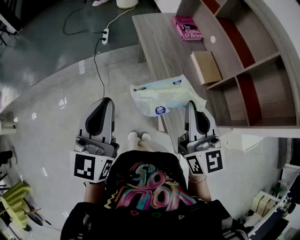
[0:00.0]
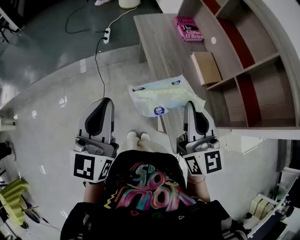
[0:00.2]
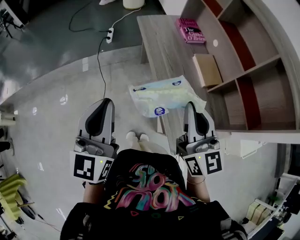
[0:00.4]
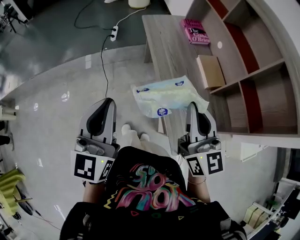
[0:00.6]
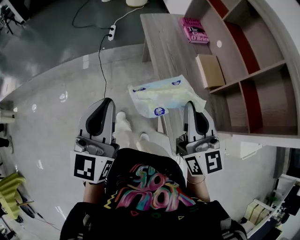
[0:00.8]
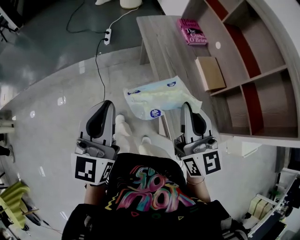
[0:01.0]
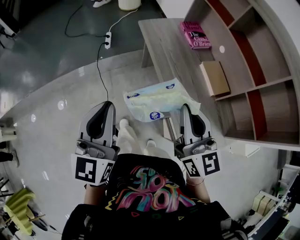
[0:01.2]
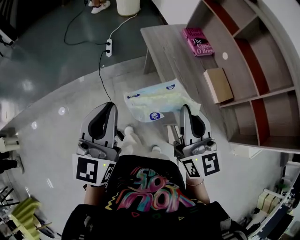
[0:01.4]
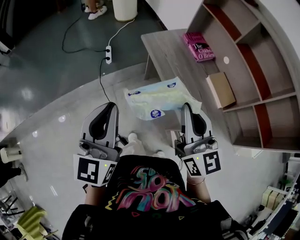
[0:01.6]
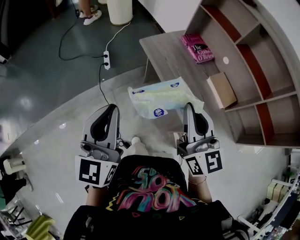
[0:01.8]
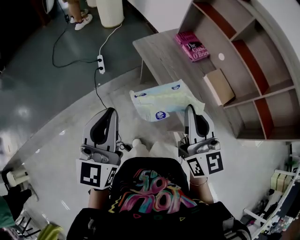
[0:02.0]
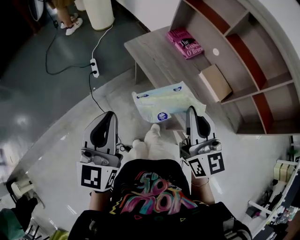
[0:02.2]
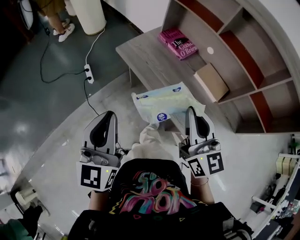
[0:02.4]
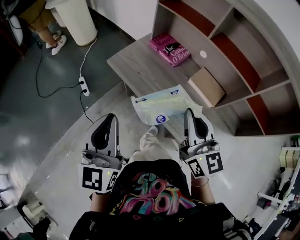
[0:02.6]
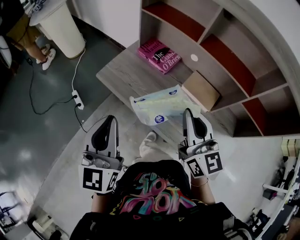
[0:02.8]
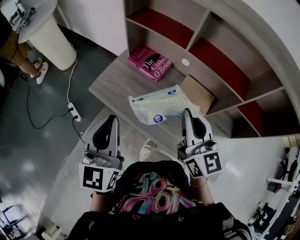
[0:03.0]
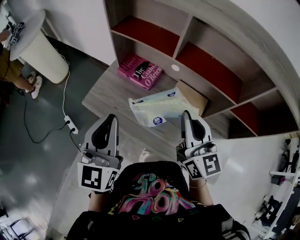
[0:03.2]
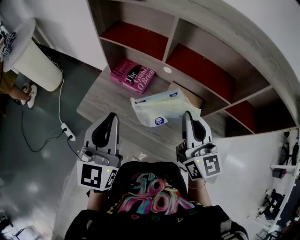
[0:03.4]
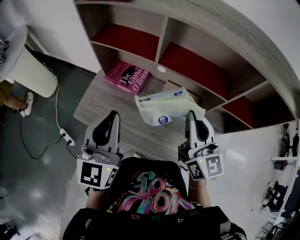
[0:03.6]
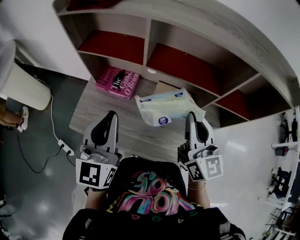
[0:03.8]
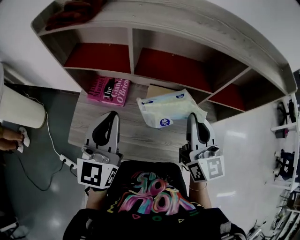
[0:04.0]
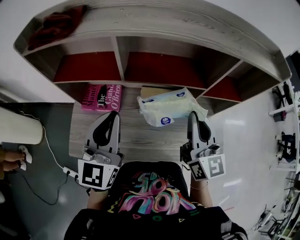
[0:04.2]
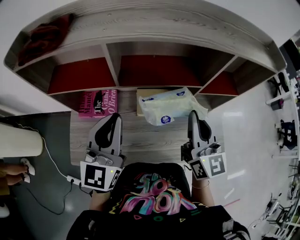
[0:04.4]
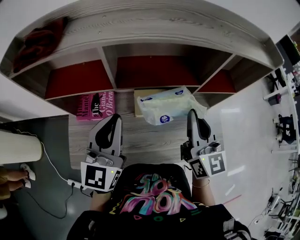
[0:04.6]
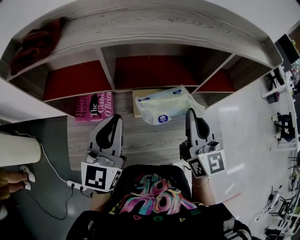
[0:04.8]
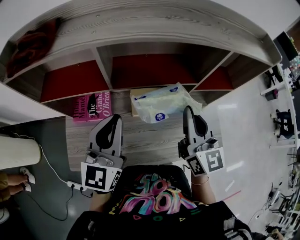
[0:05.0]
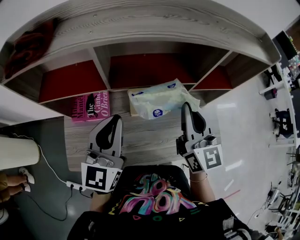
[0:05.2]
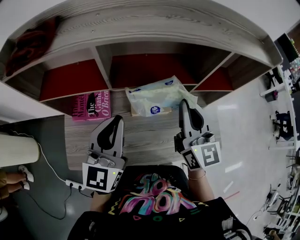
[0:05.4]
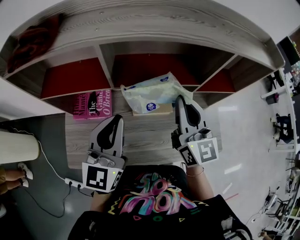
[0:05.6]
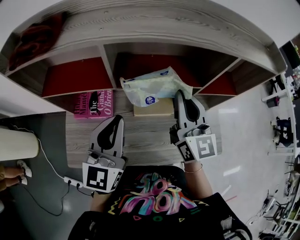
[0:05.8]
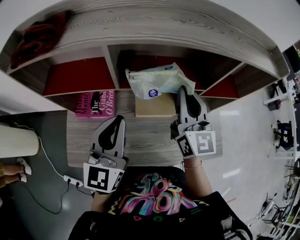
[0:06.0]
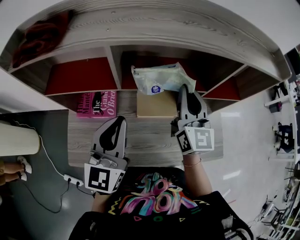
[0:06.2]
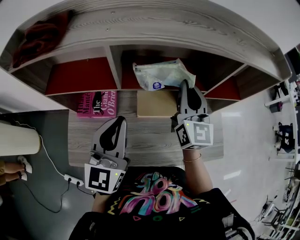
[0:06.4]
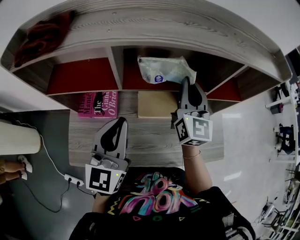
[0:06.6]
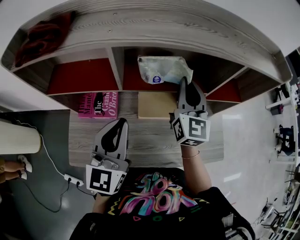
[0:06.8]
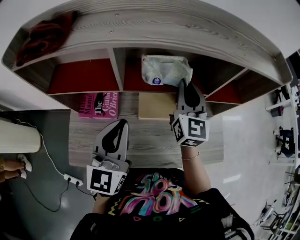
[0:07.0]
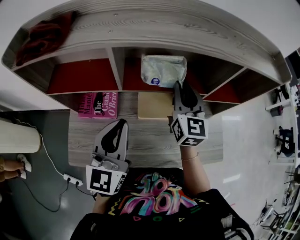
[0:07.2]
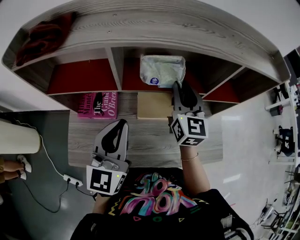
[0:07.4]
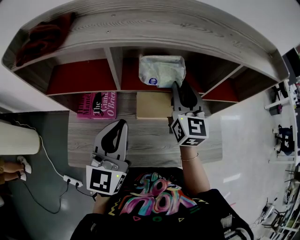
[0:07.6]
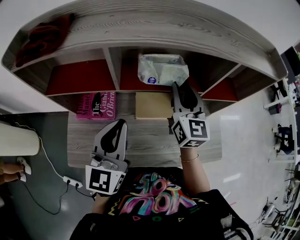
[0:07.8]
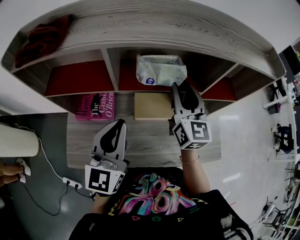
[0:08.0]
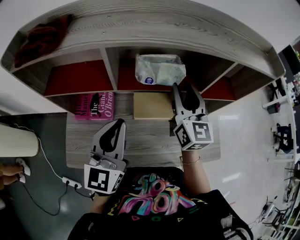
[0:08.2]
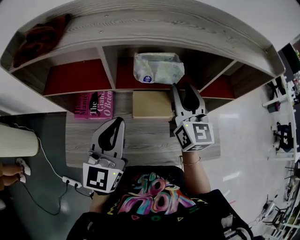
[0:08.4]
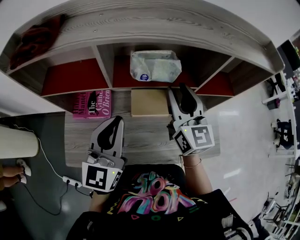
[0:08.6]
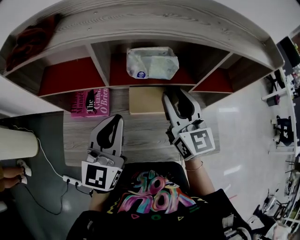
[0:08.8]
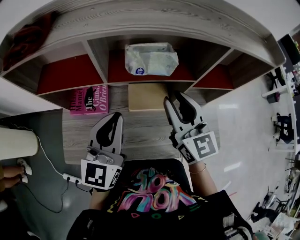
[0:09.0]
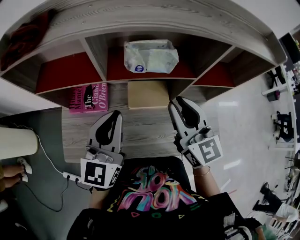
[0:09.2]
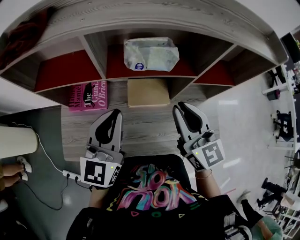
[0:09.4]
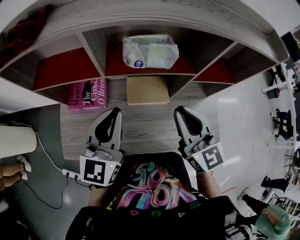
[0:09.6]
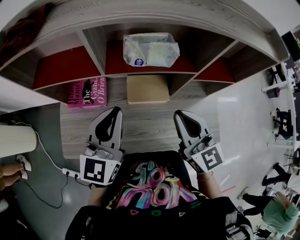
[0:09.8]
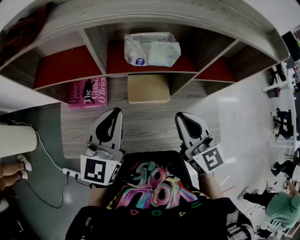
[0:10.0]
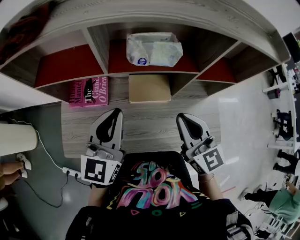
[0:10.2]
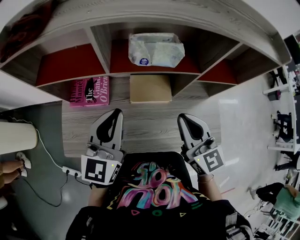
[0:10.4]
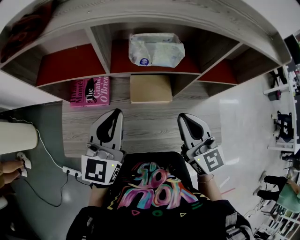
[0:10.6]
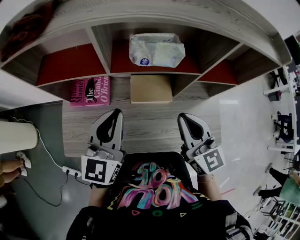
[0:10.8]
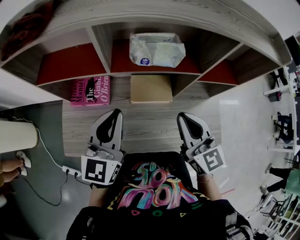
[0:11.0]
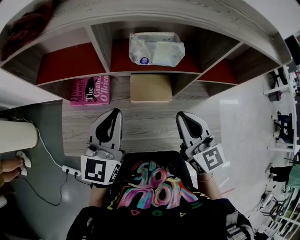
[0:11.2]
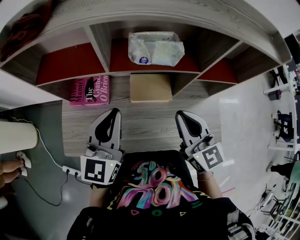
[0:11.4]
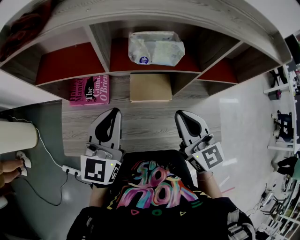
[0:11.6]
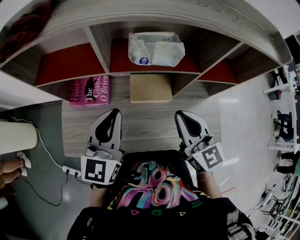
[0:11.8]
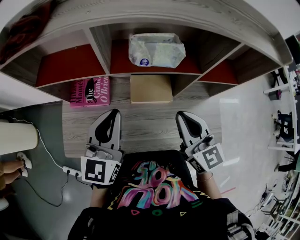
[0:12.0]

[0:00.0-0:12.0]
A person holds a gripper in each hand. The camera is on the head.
0:00.0 to 0:01.6: Both grippers move forward and to the left, approximately 20 cm.
0:01.6 to 0:03.0: The left gripper moves approximately 30 cm, and rotates approximately 30 degrees, while the right gripper moves approximately 20 cm, and swivels roughly 30 degrees.
0:03.0 to 0:04.4: The right gripper changes place by some 15 cm, and rotates roughly 40 degrees; the left gripper changes place by roughly 25 cm, and changes its angle by about 40 degrees.
0:04.4 to 0:06.0: The right gripper moves forward, about 10 cm.
0:06.0 to 0:07.6: The right gripper ends up approximately 5 cm from where it was, and opens.
0:07.6 to 0:09.0: The right gripper goes roughly 10 cm backward.
0:09.0 to 0:10.4: The right gripper heads backward, covering some 5 cm, and closes.
0:10.4 to 0:12.0: Both grippers stay put.

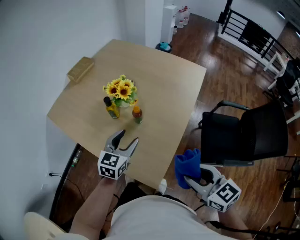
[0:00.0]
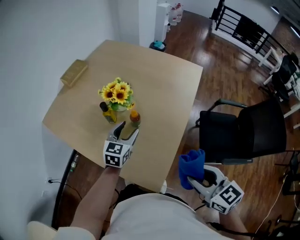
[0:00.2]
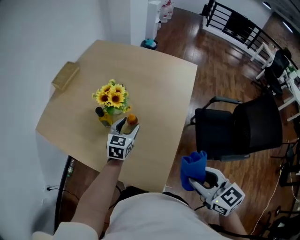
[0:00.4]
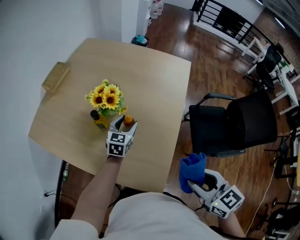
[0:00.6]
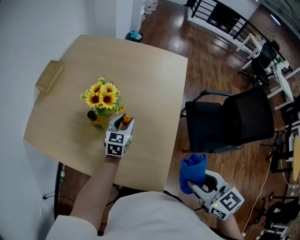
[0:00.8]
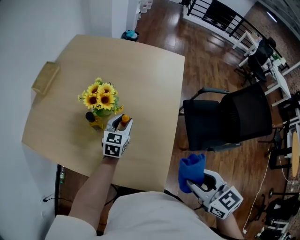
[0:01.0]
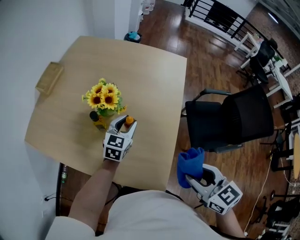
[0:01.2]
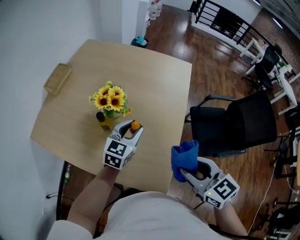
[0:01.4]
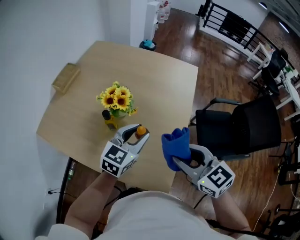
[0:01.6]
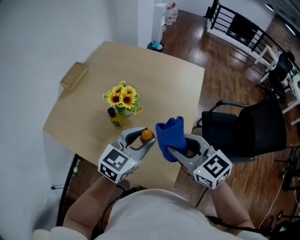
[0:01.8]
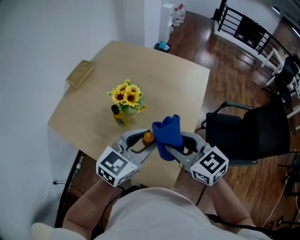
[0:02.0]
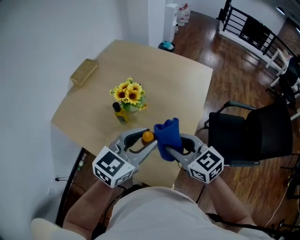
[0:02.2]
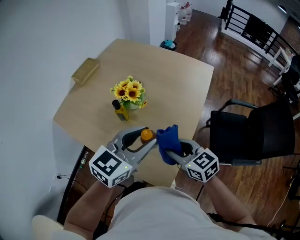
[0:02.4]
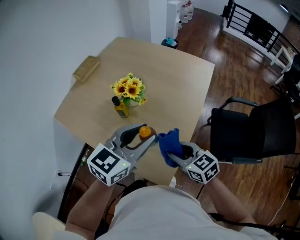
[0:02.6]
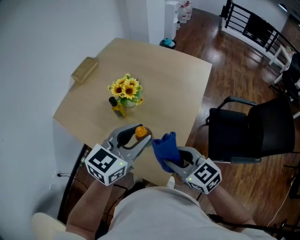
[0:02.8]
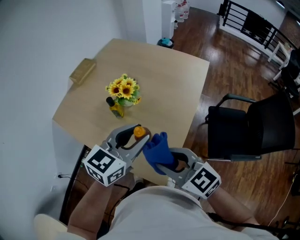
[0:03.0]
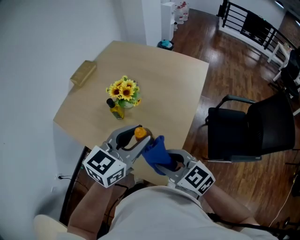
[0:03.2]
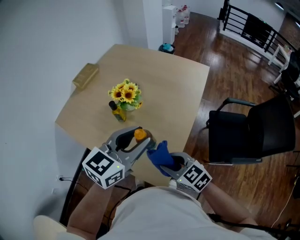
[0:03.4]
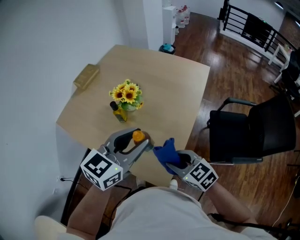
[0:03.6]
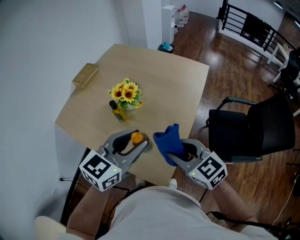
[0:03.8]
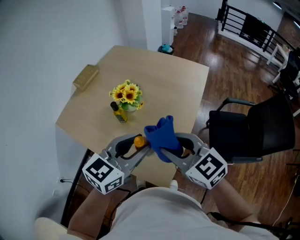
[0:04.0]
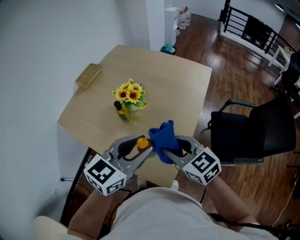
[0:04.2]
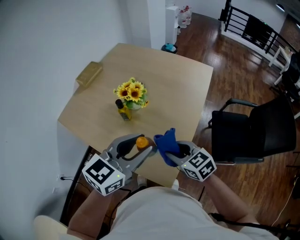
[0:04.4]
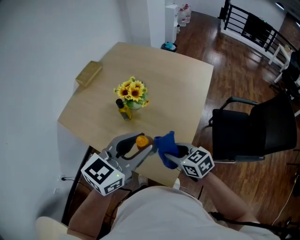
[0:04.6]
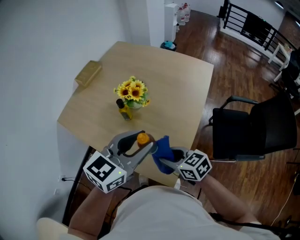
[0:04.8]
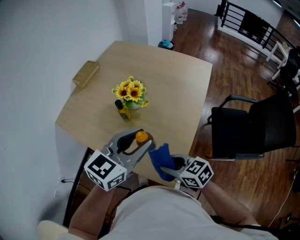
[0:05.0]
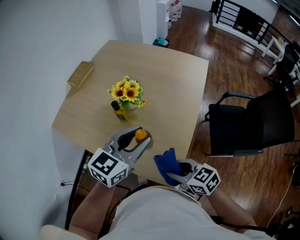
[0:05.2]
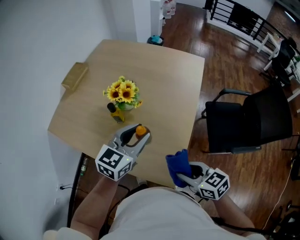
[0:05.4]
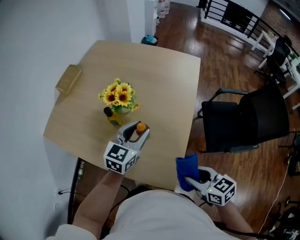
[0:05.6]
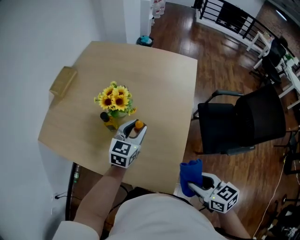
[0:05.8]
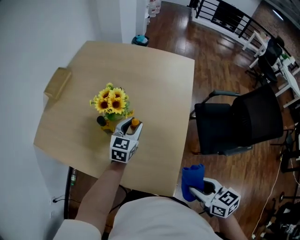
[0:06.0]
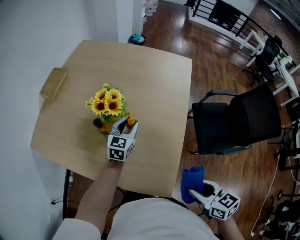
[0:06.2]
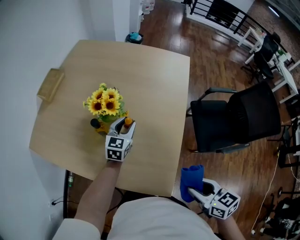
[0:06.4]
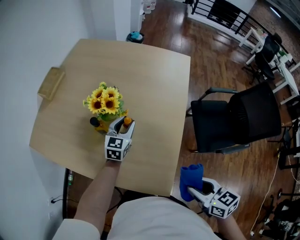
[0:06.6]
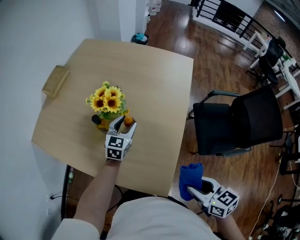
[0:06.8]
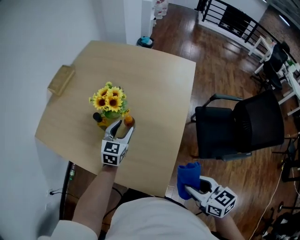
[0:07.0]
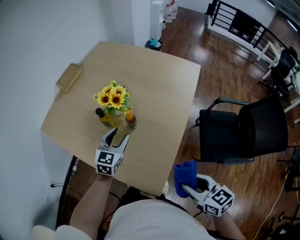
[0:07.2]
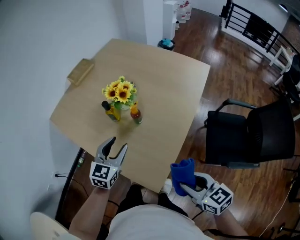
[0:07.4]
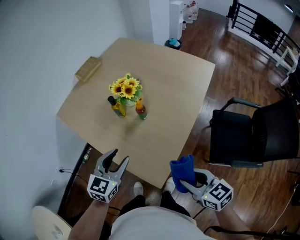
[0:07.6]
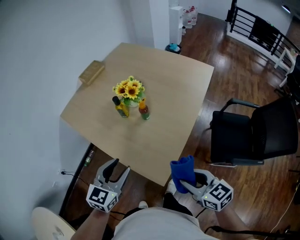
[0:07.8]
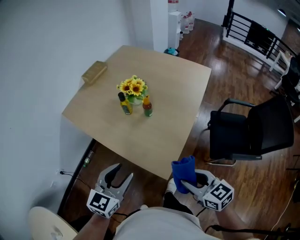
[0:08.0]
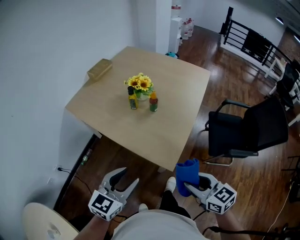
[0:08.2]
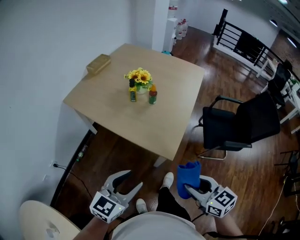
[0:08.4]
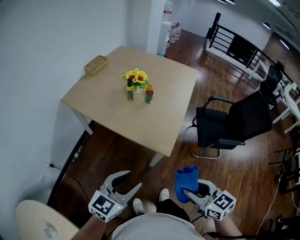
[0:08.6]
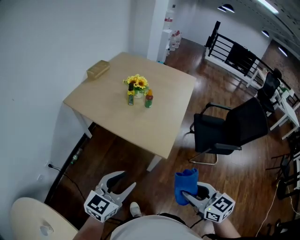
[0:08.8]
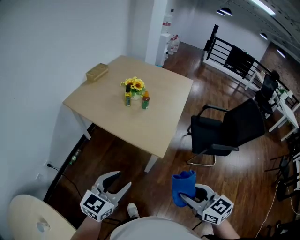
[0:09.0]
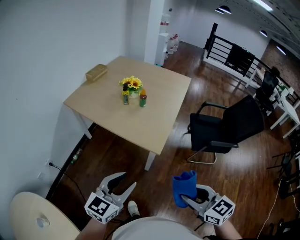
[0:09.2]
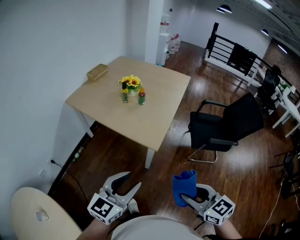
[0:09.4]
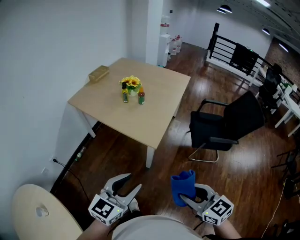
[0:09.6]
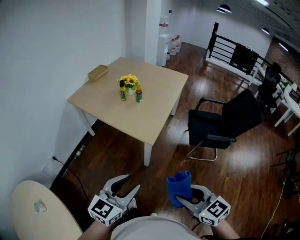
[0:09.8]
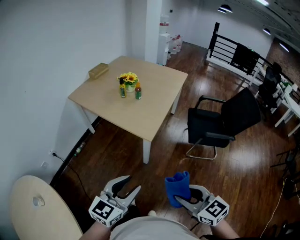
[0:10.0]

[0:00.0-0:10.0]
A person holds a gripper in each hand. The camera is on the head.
0:00.0 to 0:01.4: The right gripper travels forward and to the left by roughly 10 cm. Meanwhile the left gripper goes roughly 10 cm forward, and closes its fingers.
0:01.4 to 0:02.8: The right gripper changes its angle by about 20 degrees; the left gripper moves backward and upward, roughly 20 cm.
0:02.8 to 0:04.2: The right gripper moves up and down over some 15 cm, changing direction 3 times.
0:04.2 to 0:05.8: The left gripper goes some 25 cm forward and downward, while the right gripper goes about 15 cm backward, downward and to the right, and turns by some 30 degrees.
0:05.8 to 0:07.2: The left gripper shifts some 5 cm to the left.
0:07.2 to 0:08.6: The left gripper shifts about 50 cm backward, and swivels approximately 20 degrees. Meanwhile the right gripper goes about 30 cm backward and to the left.
0:08.6 to 0:10.0: The grippers both shift backward and to the right by approximately 25 cm.

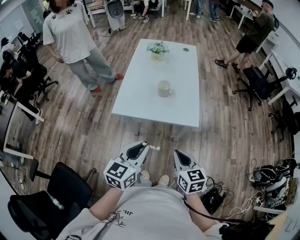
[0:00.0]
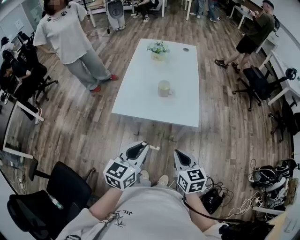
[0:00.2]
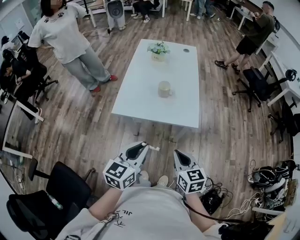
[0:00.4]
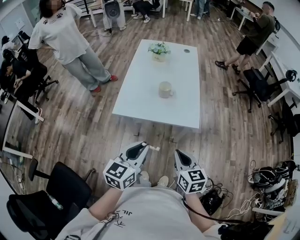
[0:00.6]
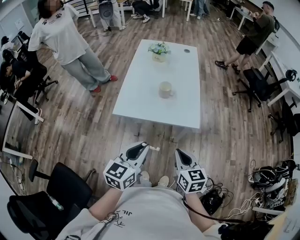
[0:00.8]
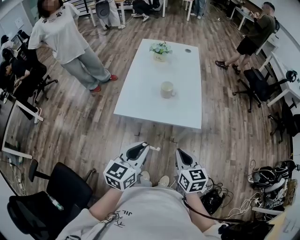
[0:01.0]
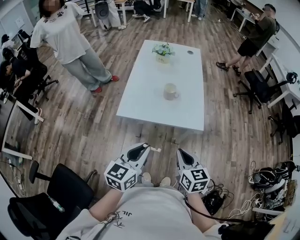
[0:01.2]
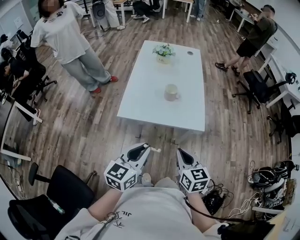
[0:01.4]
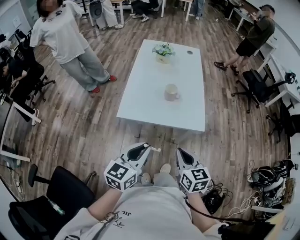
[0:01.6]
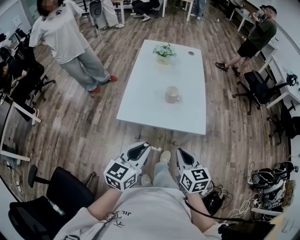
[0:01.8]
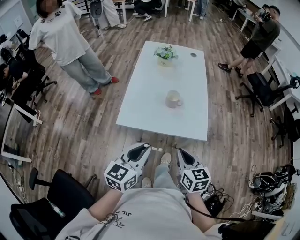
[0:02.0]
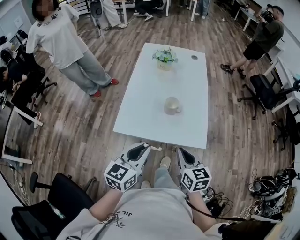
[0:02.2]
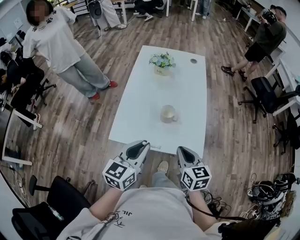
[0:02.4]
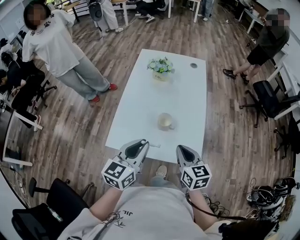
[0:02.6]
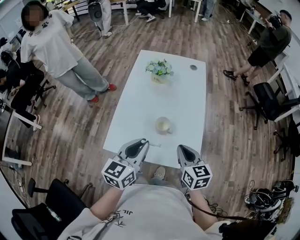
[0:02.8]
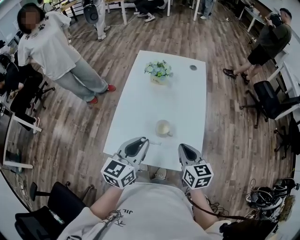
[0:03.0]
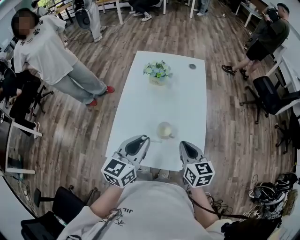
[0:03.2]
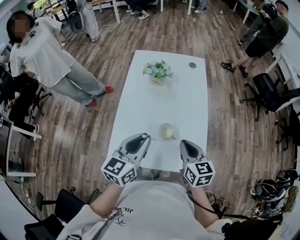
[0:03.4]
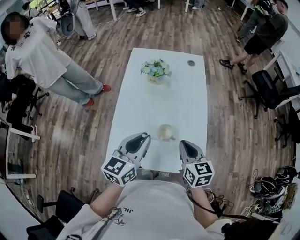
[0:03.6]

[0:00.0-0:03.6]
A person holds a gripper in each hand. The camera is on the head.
0:00.0 to 0:01.8: The left gripper goes roughly 5 cm to the left, while the right gripper travels to the left and forward by roughly 5 cm.
0:01.8 to 0:03.6: Both grippers move forward, some 30 cm.
